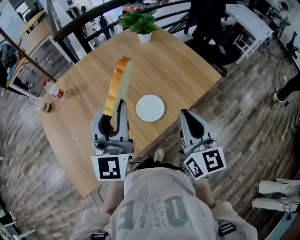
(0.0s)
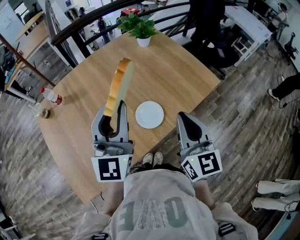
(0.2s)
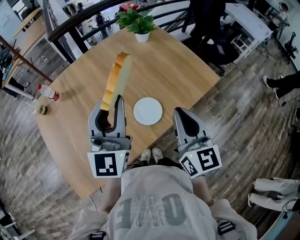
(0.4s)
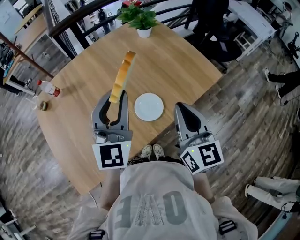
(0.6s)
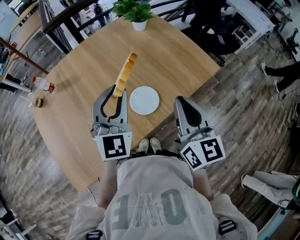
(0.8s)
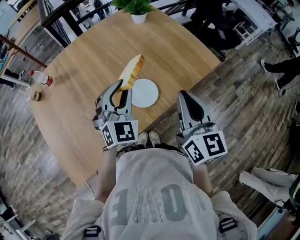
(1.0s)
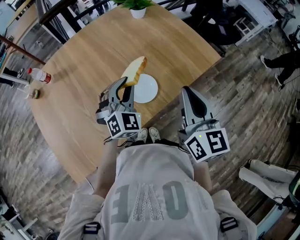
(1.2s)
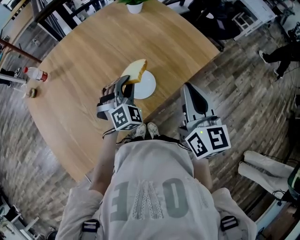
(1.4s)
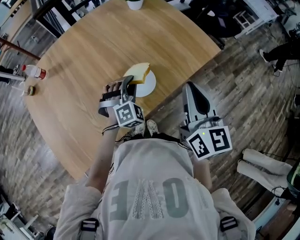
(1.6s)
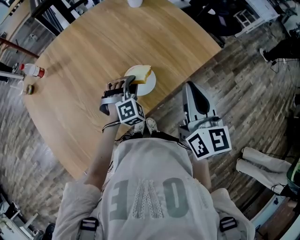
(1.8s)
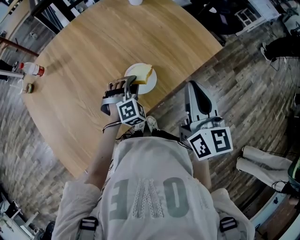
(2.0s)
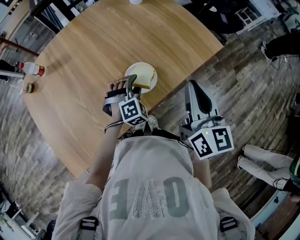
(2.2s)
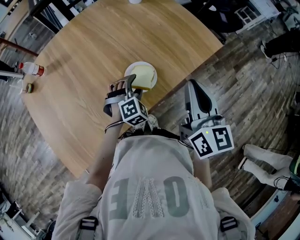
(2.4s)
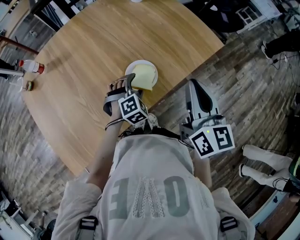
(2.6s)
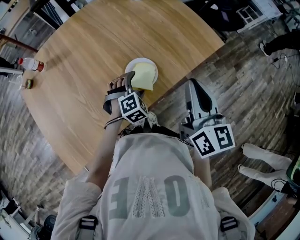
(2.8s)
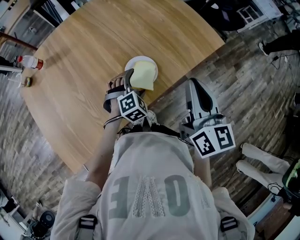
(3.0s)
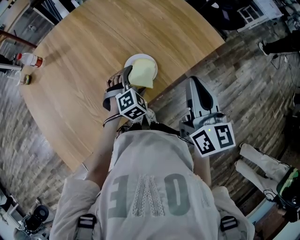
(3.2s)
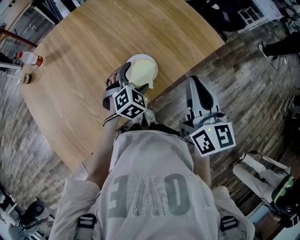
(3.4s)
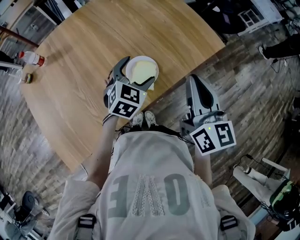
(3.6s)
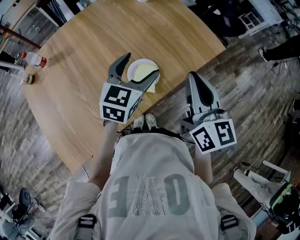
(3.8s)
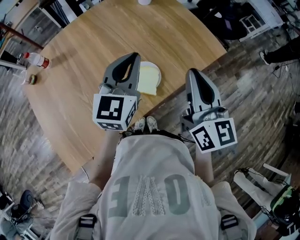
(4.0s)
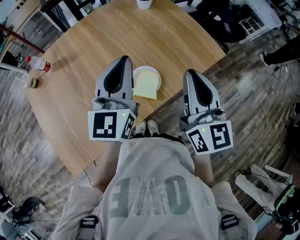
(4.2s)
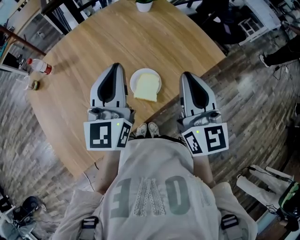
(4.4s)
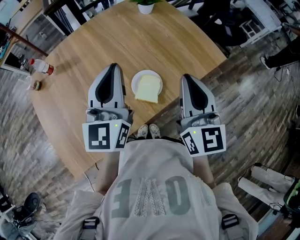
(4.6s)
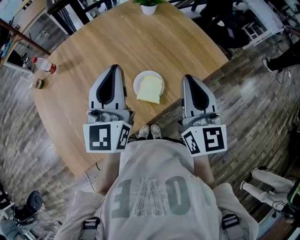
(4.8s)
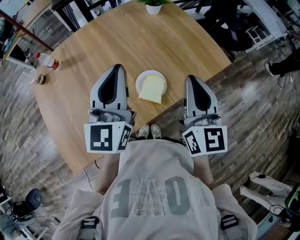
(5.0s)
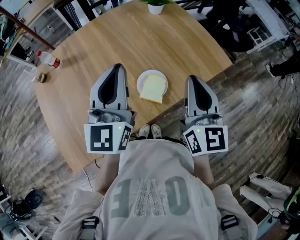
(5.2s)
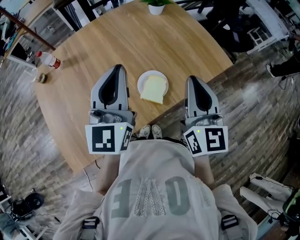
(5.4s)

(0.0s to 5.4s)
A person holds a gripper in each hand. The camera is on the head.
0.0s - 1.4s: The left gripper is displaced downward by some 25 cm, and points its fingers roughly 40 degrees further downward. Meanwhile the right gripper ends up approximately 5 cm from where it was.
1.4s - 2.8s: The left gripper moves downward, about 10 cm, swivels about 20 degrees, and opens.
2.8s - 4.0s: The left gripper shifts roughly 25 cm upward, angles its fingers upward, by approximately 50 degrees, and closes. The right gripper shifts by some 5 cm.
4.0s - 5.4s: The left gripper moves upward and to the left, approximately 10 cm.

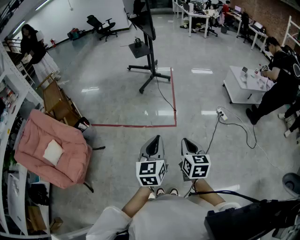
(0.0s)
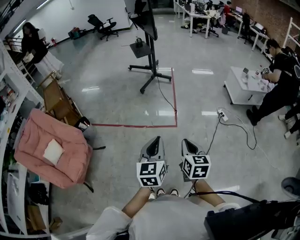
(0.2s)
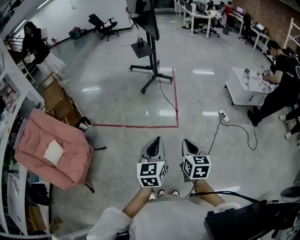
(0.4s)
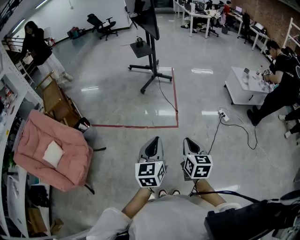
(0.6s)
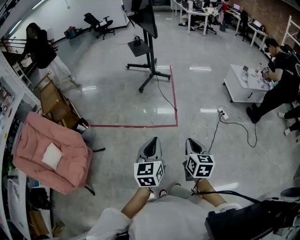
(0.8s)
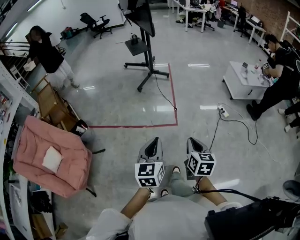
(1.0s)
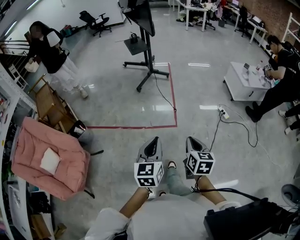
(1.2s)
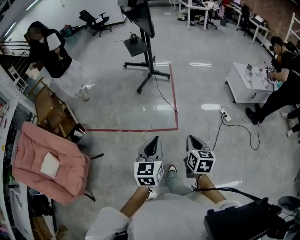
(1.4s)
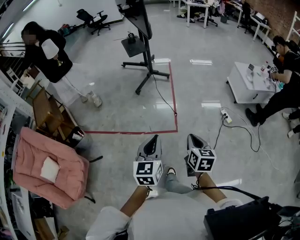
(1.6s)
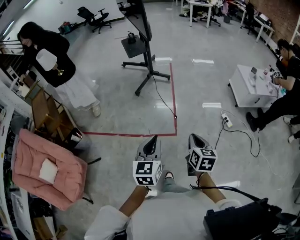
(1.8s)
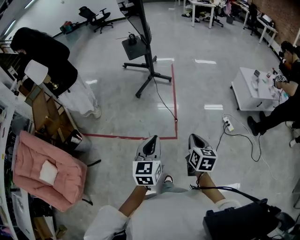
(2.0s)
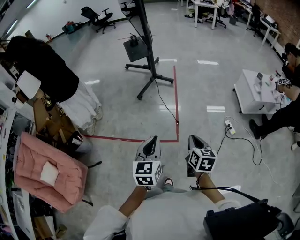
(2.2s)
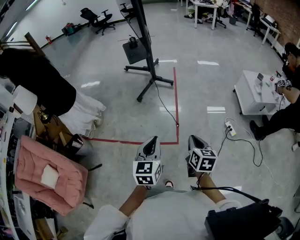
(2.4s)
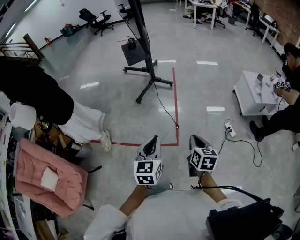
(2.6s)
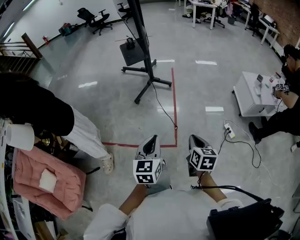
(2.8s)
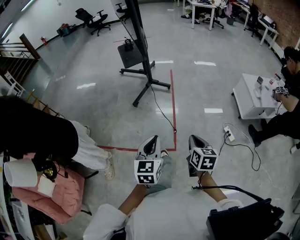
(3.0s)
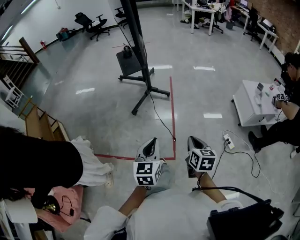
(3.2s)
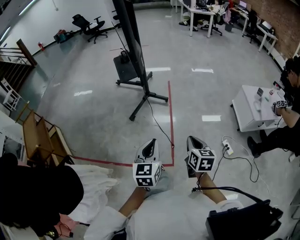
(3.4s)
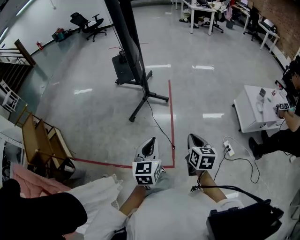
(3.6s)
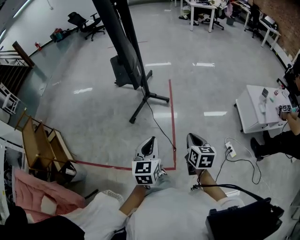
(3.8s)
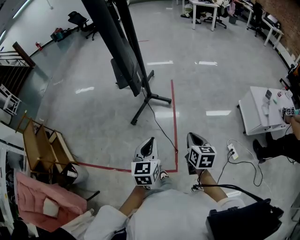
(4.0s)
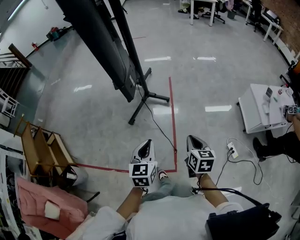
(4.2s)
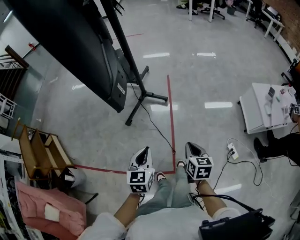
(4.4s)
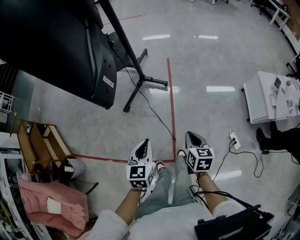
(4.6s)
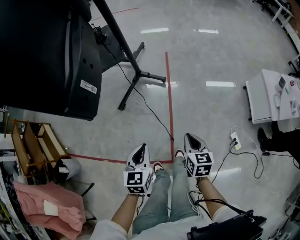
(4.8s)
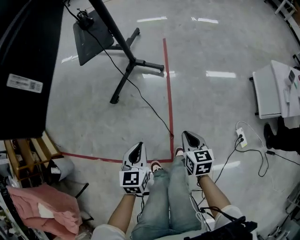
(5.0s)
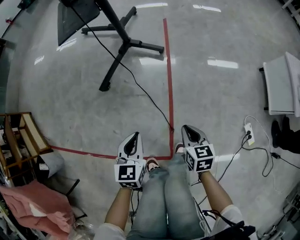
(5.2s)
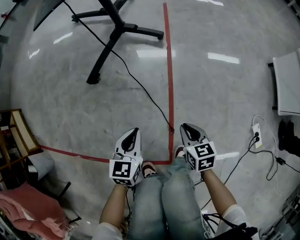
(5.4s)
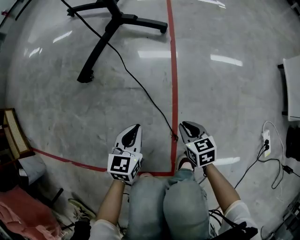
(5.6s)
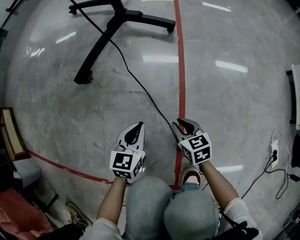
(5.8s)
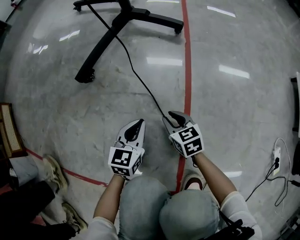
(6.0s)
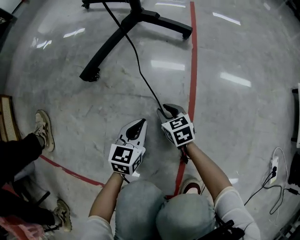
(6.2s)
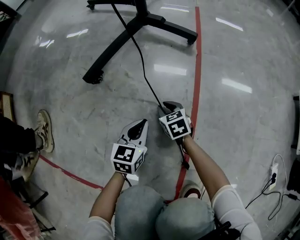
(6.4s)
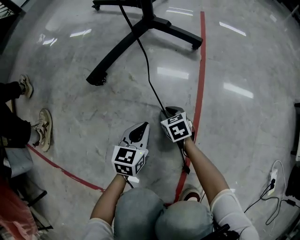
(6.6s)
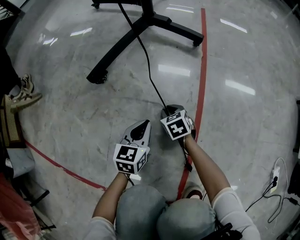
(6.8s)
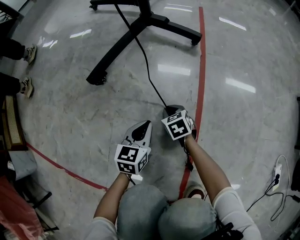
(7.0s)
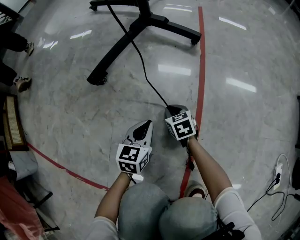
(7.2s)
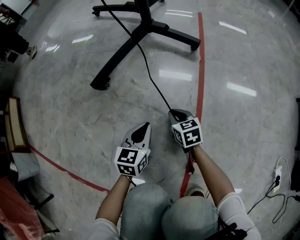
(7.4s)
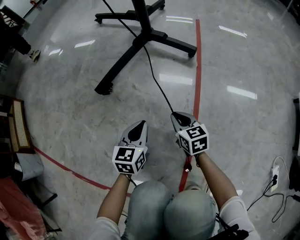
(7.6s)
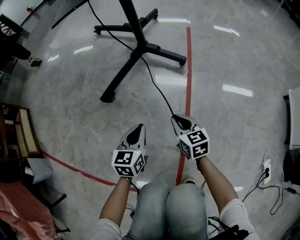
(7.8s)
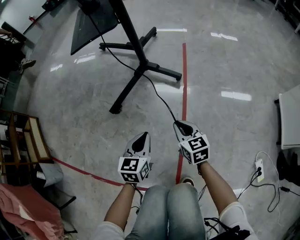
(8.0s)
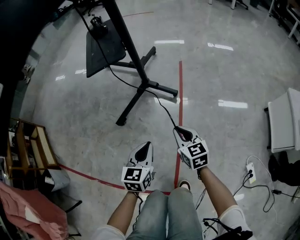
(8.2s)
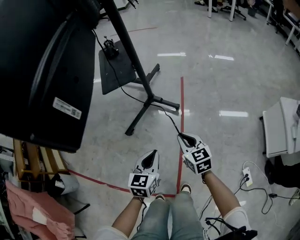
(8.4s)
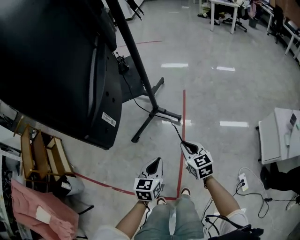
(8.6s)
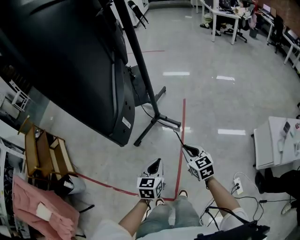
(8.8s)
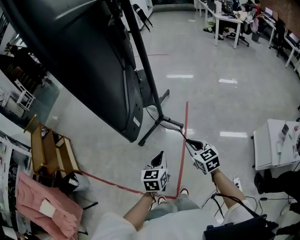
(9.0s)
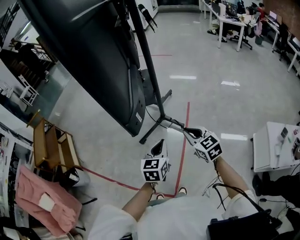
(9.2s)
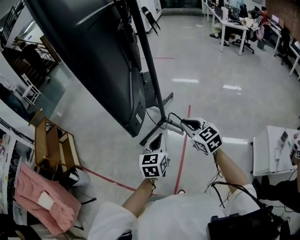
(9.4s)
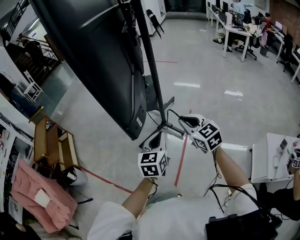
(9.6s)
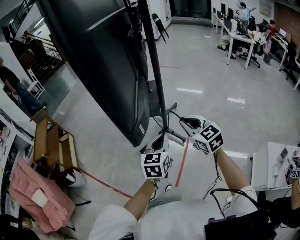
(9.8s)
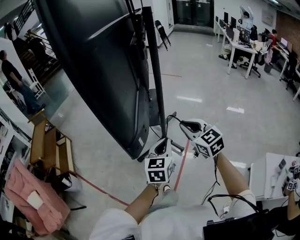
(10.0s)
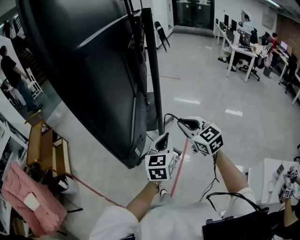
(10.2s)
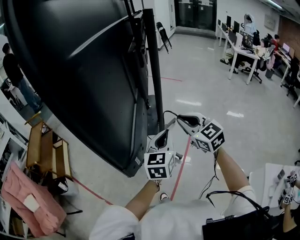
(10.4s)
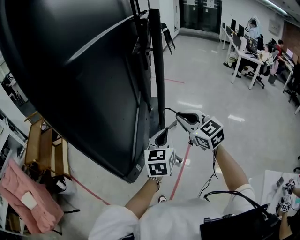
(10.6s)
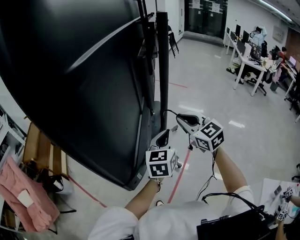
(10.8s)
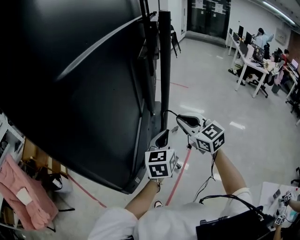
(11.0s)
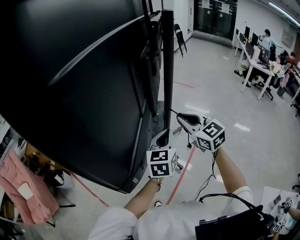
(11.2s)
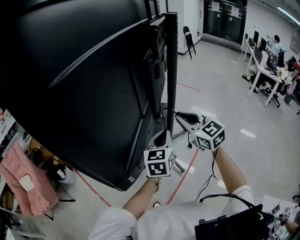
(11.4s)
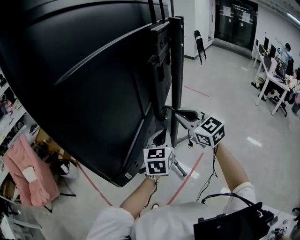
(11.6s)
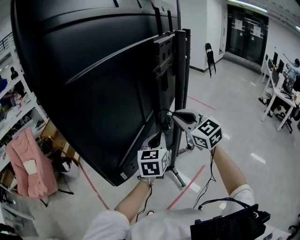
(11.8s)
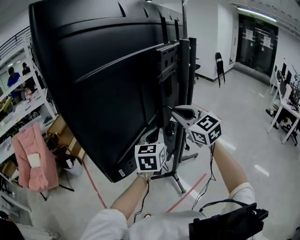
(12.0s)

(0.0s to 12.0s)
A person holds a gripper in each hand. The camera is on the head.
0.0s - 1.6s: The two grippers go approximately 25 cm forward.
1.6s - 3.0s: Both grippers travel together forward, roughly 25 cm.
3.0s - 4.4s: Both grippers travel together forward, approximately 30 cm.
4.4s - 6.0s: Both grippers move downward, about 70 cm. The right gripper changes its angle by approximately 30 degrees.
6.0s - 7.6s: The left gripper heads forward, covering about 5 cm. Meanwhile the right gripper travels forward and upward by about 10 cm.
7.6s - 9.0s: Both grippers travel together upward, roughly 70 cm.
9.0s - 10.4s: The left gripper shifts roughly 30 cm upward, forward and to the right, and swivels some 20 degrees. Meanwhile the right gripper heads upward and forward, covering about 30 cm, and swivels some 30 degrees.
10.4s - 12.0s: The left gripper shifts by some 15 cm, and swivels approximately 30 degrees, while the right gripper heads upward, covering approximately 15 cm, and rotates some 30 degrees.

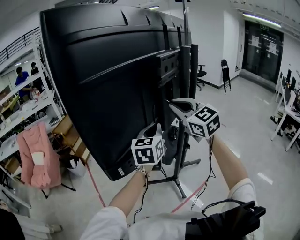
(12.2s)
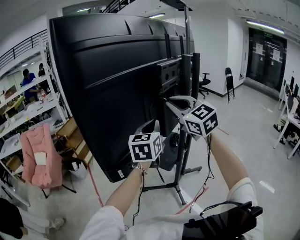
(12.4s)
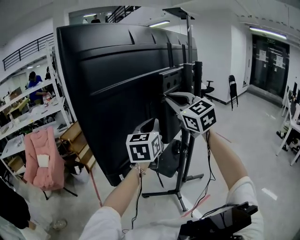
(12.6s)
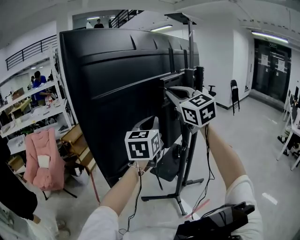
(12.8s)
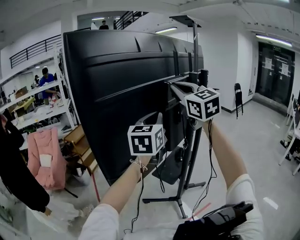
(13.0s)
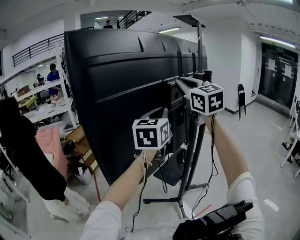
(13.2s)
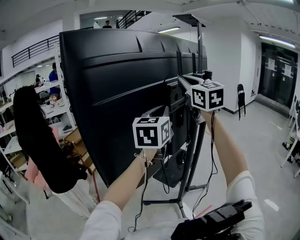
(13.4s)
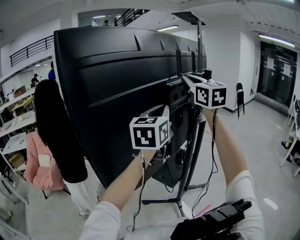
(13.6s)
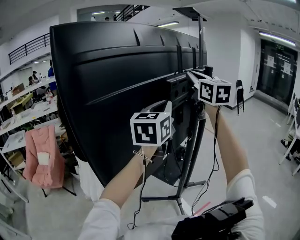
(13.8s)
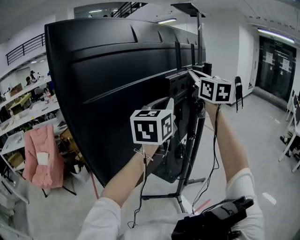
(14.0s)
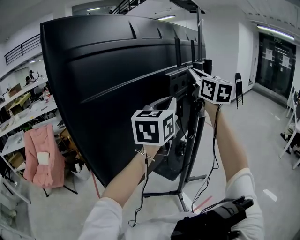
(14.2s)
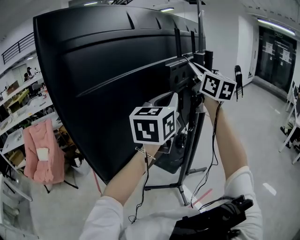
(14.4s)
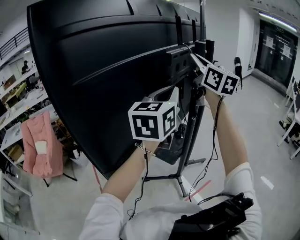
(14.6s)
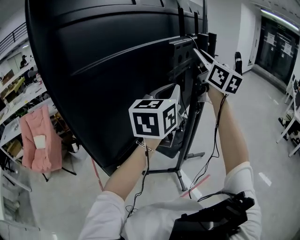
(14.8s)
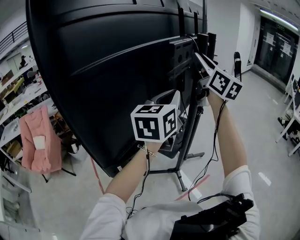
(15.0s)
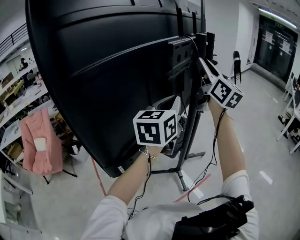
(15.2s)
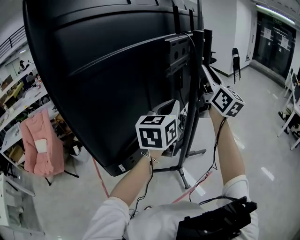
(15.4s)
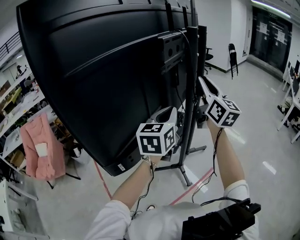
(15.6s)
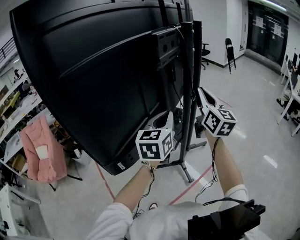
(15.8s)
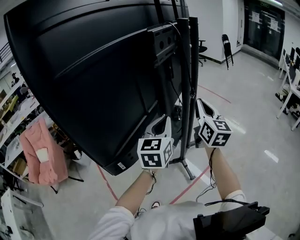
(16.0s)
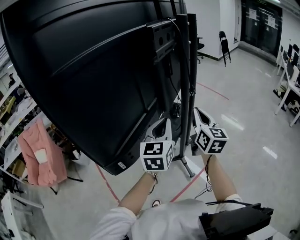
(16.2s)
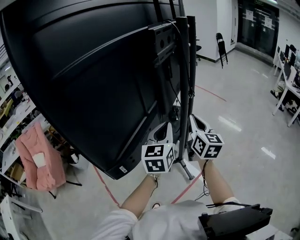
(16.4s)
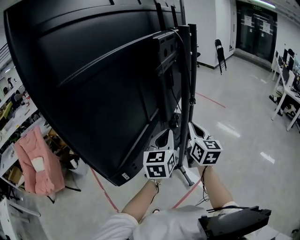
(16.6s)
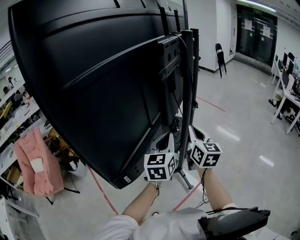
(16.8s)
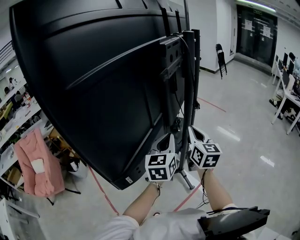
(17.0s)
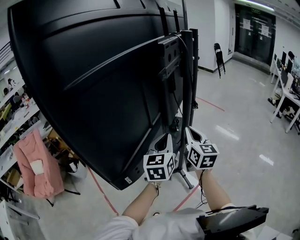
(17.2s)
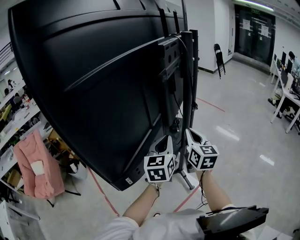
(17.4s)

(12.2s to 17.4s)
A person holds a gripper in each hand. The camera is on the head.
12.2s - 14.0s: The right gripper goes roughly 25 cm upward, forward and to the right, and rotates approximately 30 degrees. The left gripper shifts about 20 cm upward.
14.0s - 15.6s: The two grippers go approximately 15 cm downward.
15.6s - 17.4s: The left gripper is displaced downward by some 10 cm. Meanwhile the right gripper is displaced downward by roughly 20 cm, swivels roughly 20 degrees, and closes.

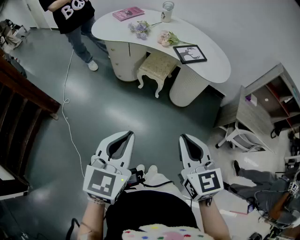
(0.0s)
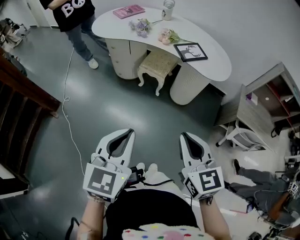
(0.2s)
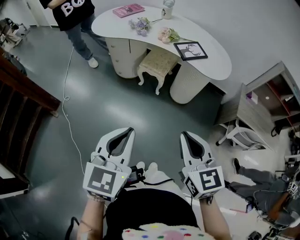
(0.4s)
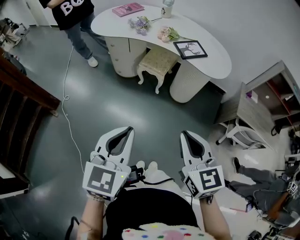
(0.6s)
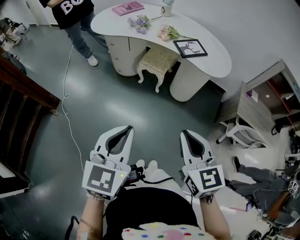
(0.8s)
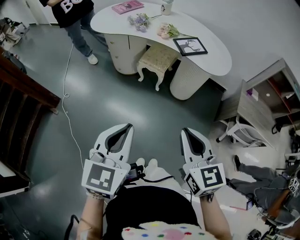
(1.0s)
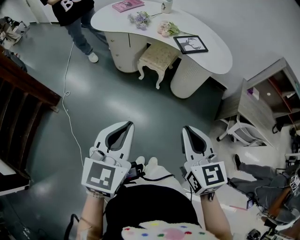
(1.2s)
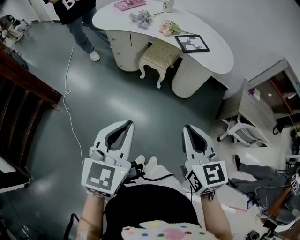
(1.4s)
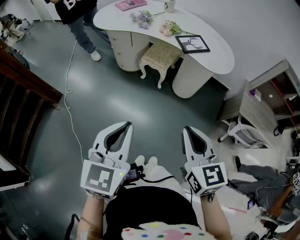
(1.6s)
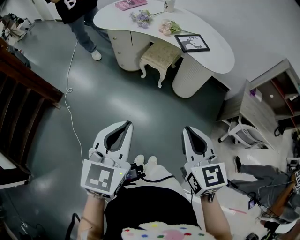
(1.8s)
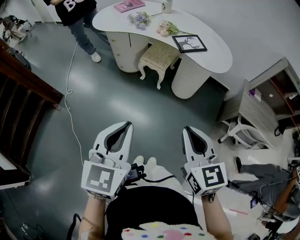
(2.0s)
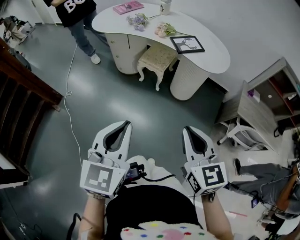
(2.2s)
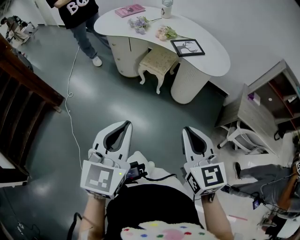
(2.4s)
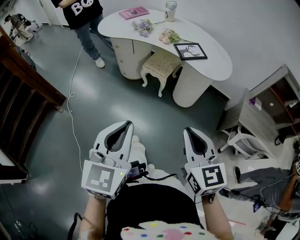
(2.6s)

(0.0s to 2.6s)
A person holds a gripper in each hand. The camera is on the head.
0.0s - 1.2s: The grippers stay close to where they were, moving slightly.
1.2s - 2.6s: The grippers stay close to where they were, moving slightly.
